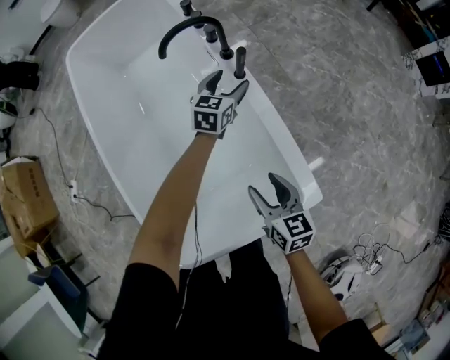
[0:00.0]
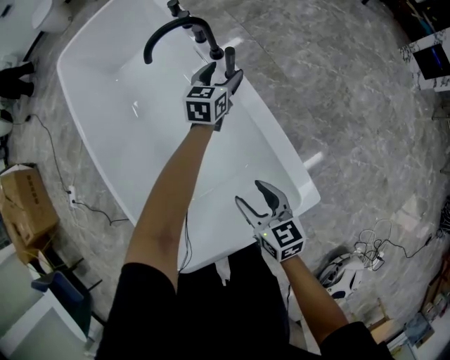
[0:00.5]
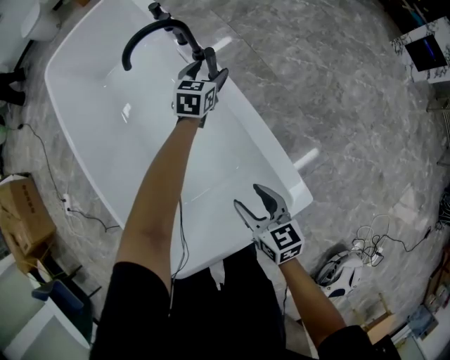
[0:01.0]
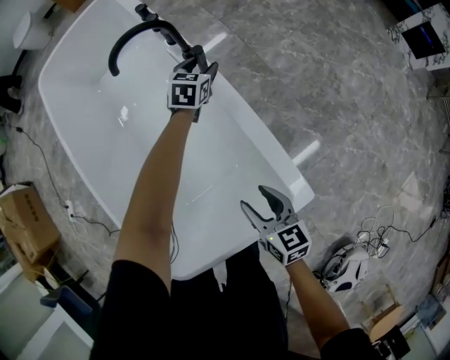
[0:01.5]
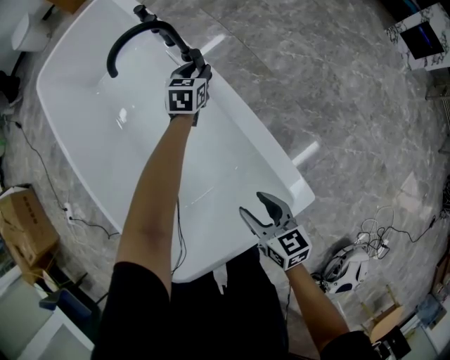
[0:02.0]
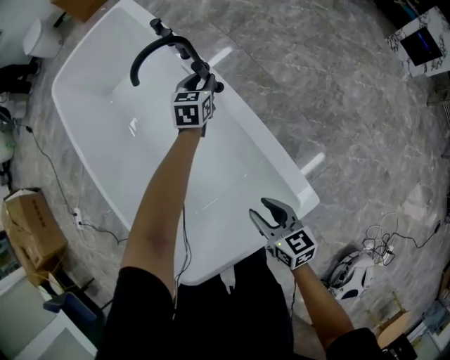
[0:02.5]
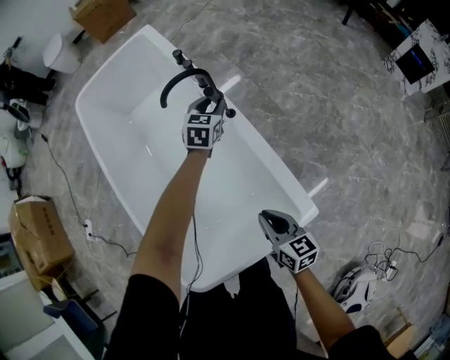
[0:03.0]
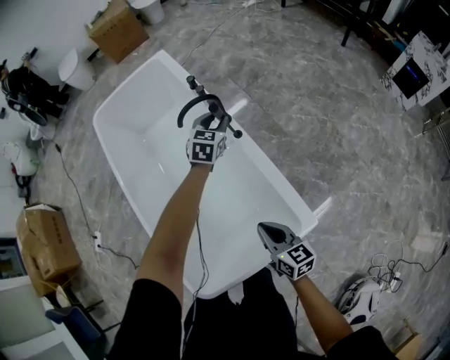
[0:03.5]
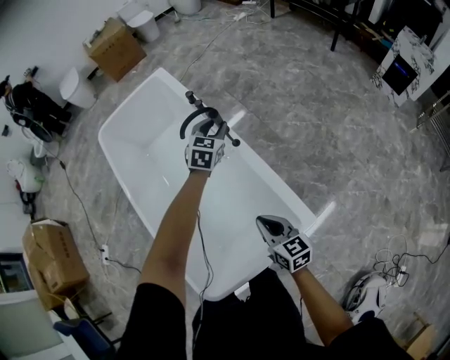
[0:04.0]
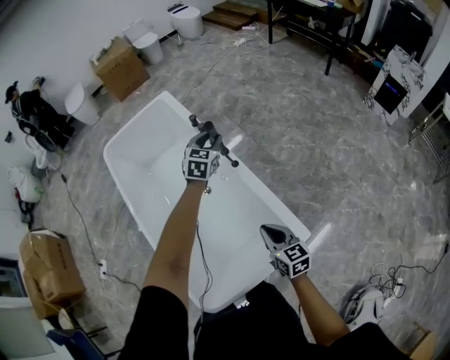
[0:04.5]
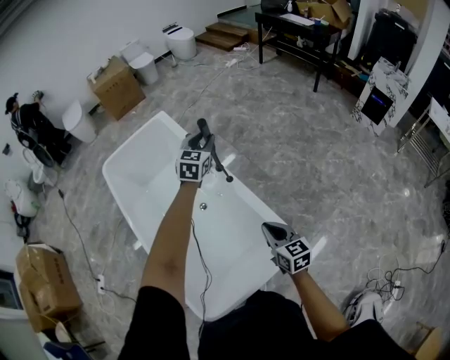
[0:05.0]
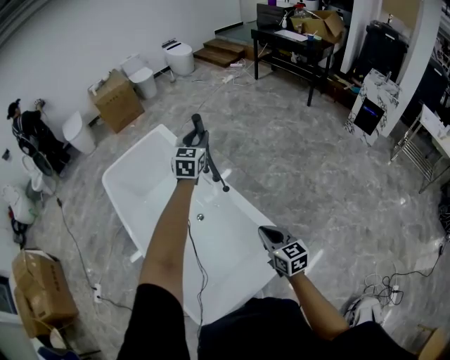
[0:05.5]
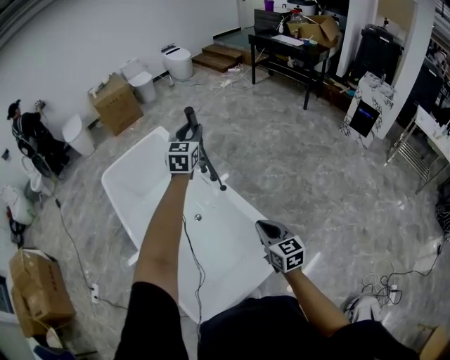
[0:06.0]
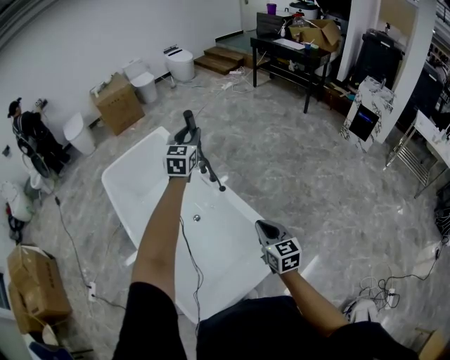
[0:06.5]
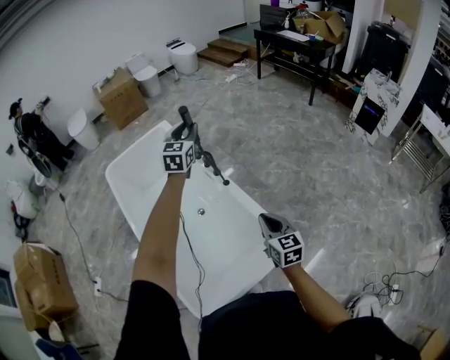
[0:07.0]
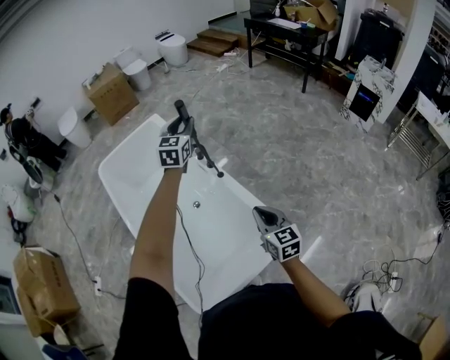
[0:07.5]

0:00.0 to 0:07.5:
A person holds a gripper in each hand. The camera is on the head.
0:00.0 to 0:02.0: The left gripper is displaced downward and forward by about 10 cm, and closes up. The right gripper ends up approximately 5 cm from where it was.
0:02.0 to 0:04.0: The right gripper shifts approximately 20 cm upward, and closes up; the left gripper travels upward by approximately 30 cm.
0:04.0 to 0:05.5: The right gripper moves upward, about 10 cm; the left gripper heads upward, covering approximately 25 cm.

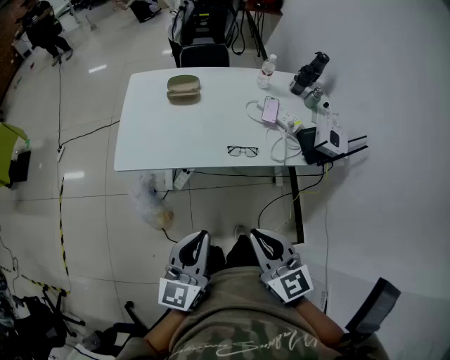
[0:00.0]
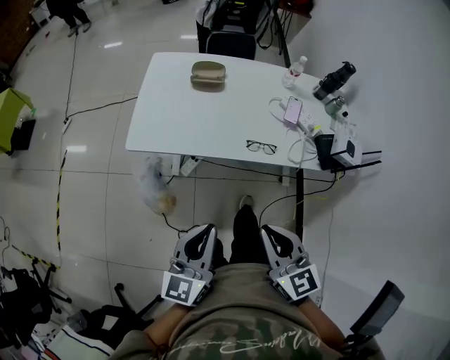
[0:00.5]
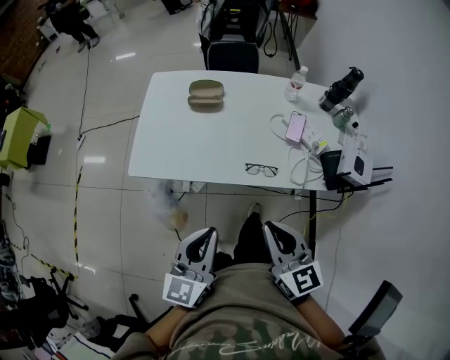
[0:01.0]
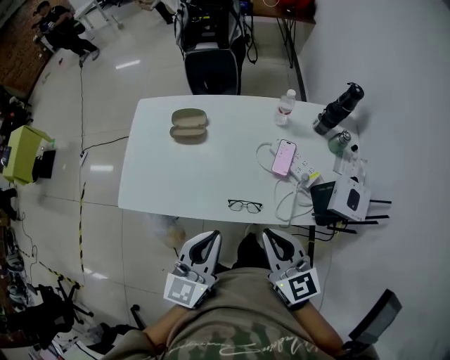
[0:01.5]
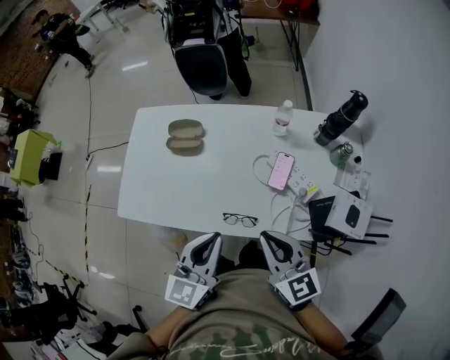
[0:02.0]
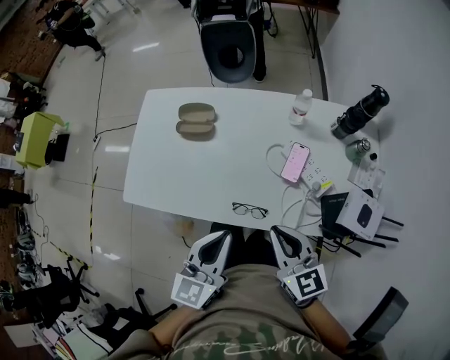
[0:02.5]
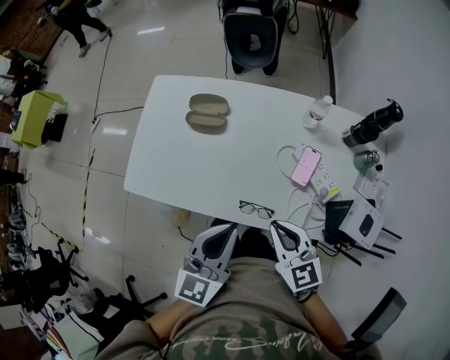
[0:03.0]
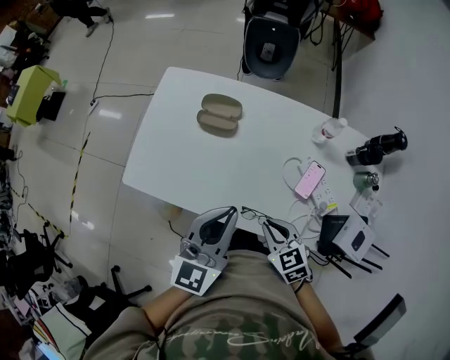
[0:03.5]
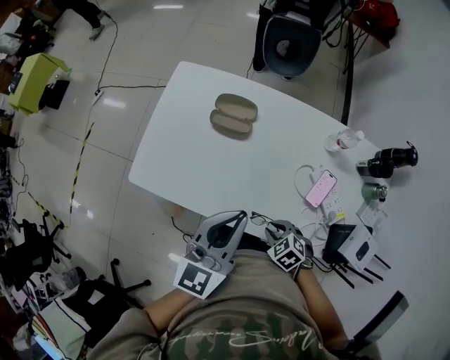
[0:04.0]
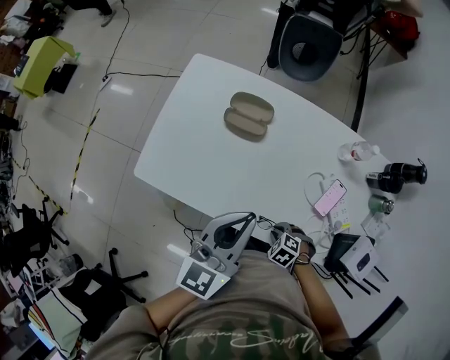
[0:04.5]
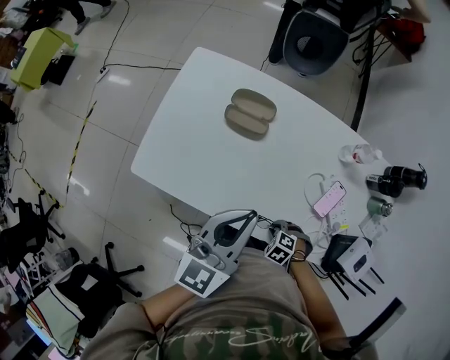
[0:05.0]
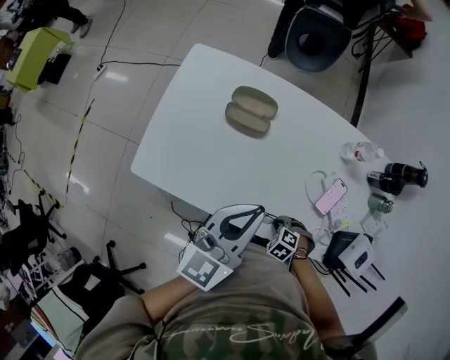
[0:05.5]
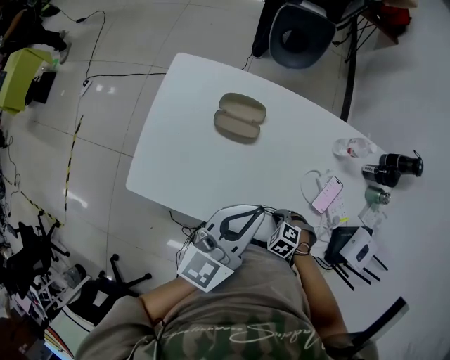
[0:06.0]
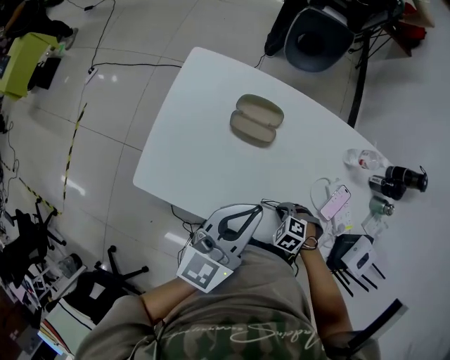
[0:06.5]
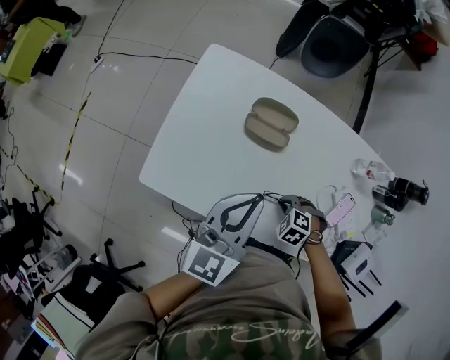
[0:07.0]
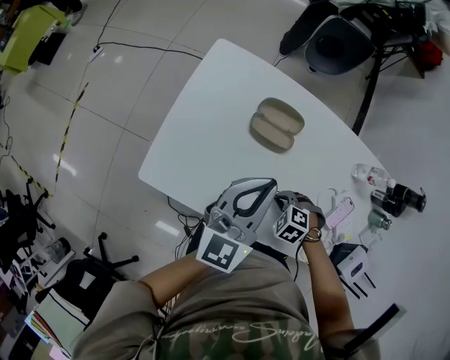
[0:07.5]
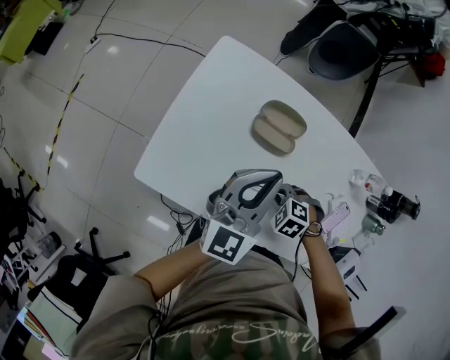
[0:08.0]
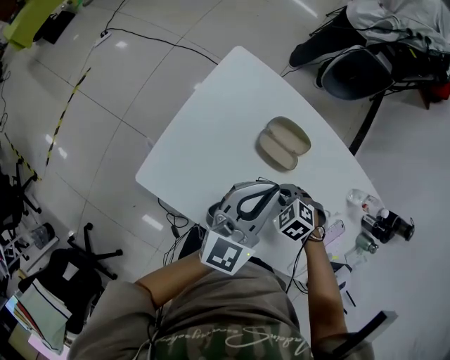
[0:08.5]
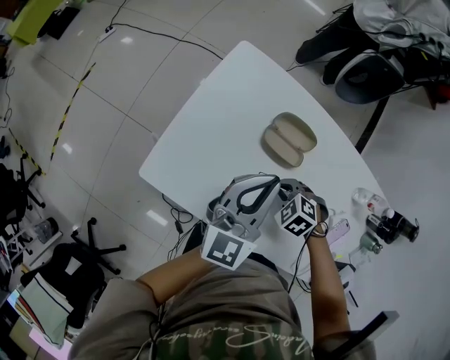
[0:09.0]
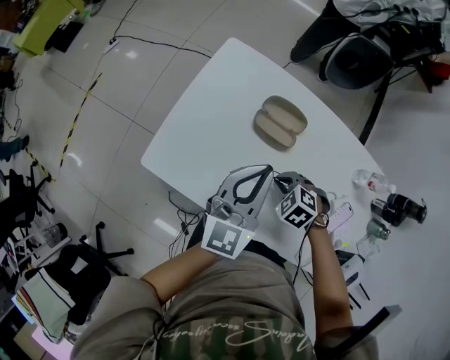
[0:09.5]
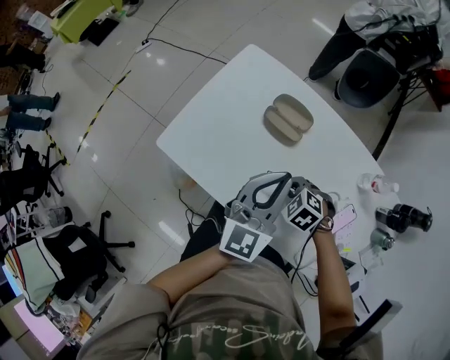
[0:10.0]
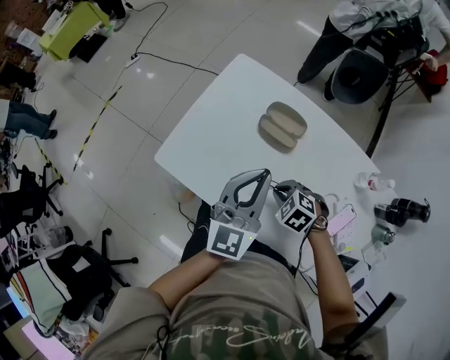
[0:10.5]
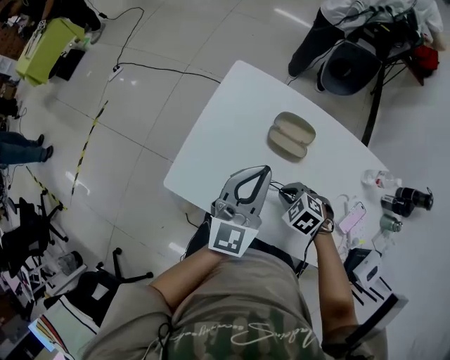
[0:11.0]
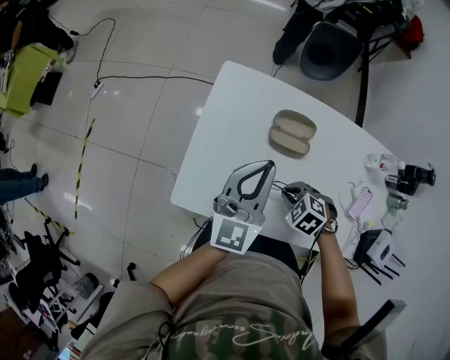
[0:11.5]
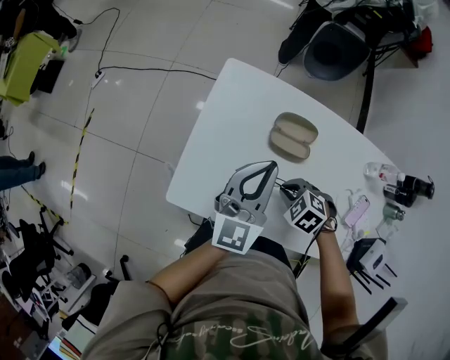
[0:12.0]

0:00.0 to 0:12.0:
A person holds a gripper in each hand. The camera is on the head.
0:00.0 to 0:02.0: Both grippers travel together forward and to the right, some 30 cm.
0:02.0 to 0:04.0: The right gripper goes about 25 cm downward, and tilts its fingers about 50 degrees downward. The left gripper moves forward and to the left, about 15 cm.
0:04.0 to 0:06.0: The right gripper travels downward by some 5 cm, and changes its angle by approximately 20 degrees, while the left gripper changes place by about 10 cm.
0:06.0 to 0:08.0: The left gripper ends up some 15 cm from where it was. The right gripper changes place by approximately 20 cm.
0:08.0 to 0:10.0: The right gripper is displaced upward by some 5 cm. The left gripper moves some 10 cm.
0:10.0 to 0:12.0: The right gripper ends up about 10 cm from where it was. The left gripper ends up about 20 cm from where it was.

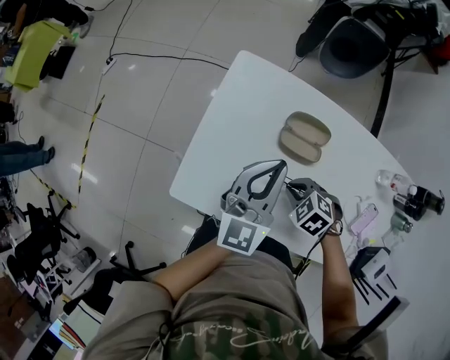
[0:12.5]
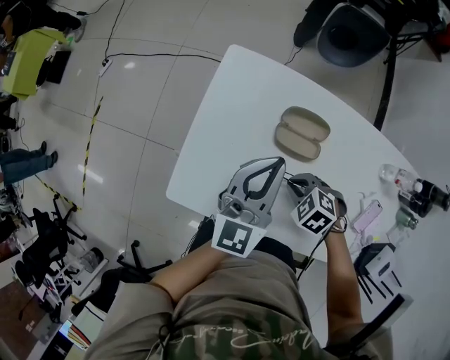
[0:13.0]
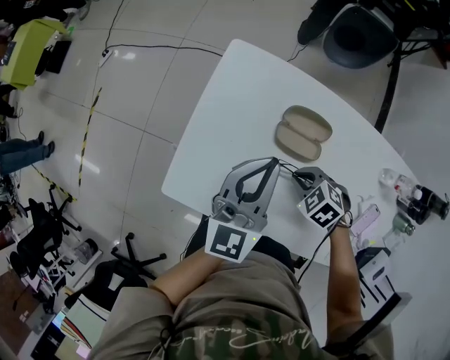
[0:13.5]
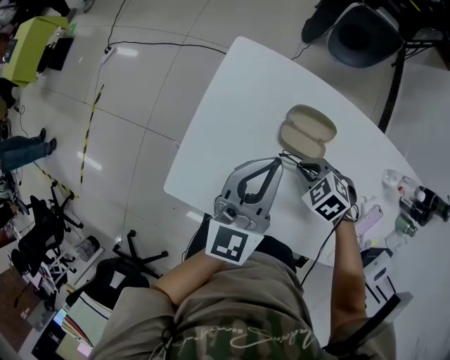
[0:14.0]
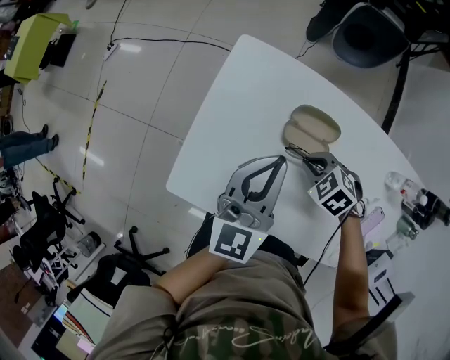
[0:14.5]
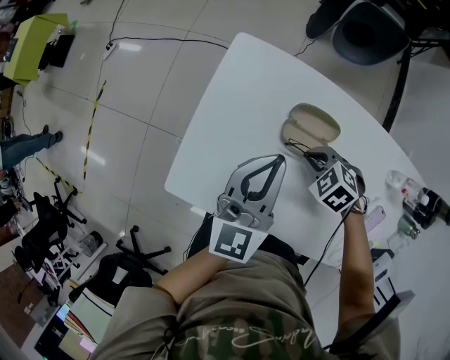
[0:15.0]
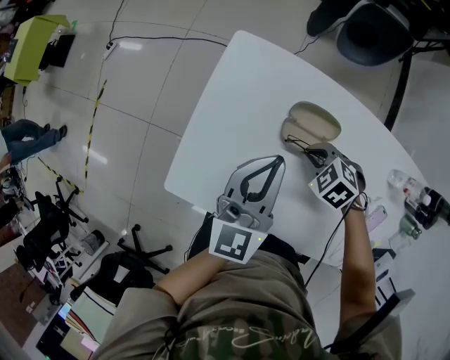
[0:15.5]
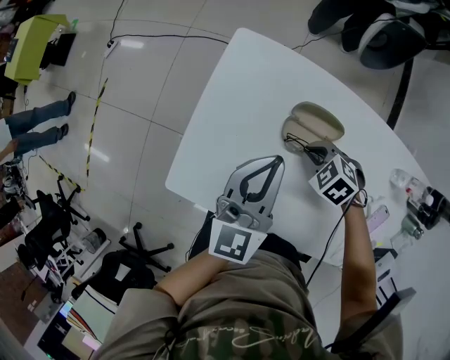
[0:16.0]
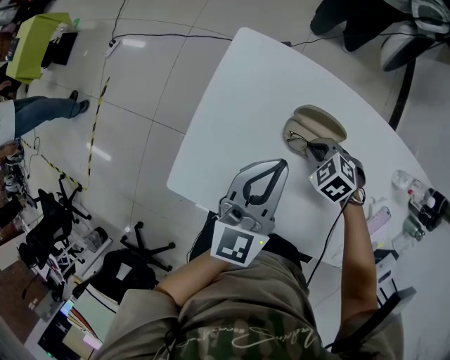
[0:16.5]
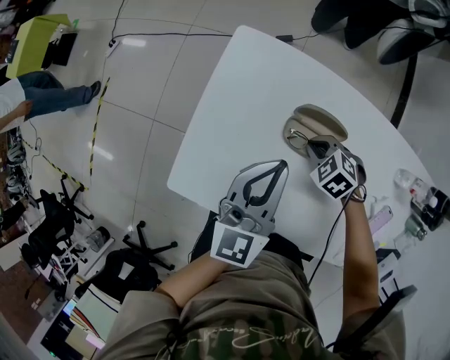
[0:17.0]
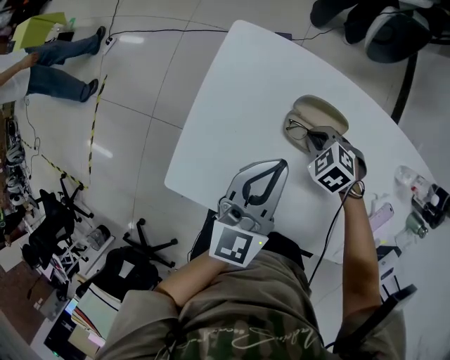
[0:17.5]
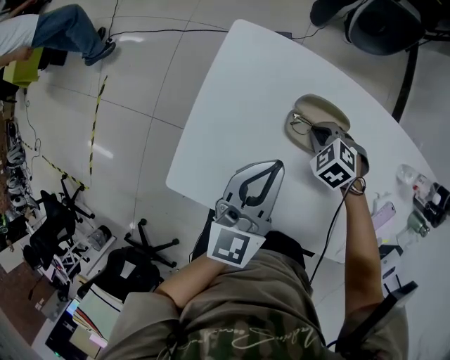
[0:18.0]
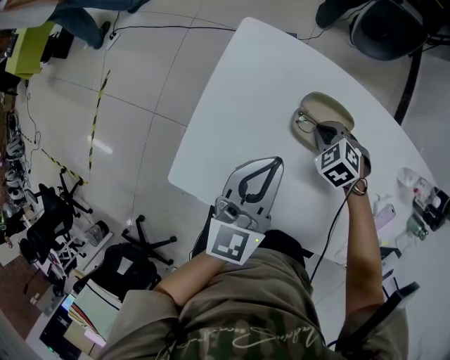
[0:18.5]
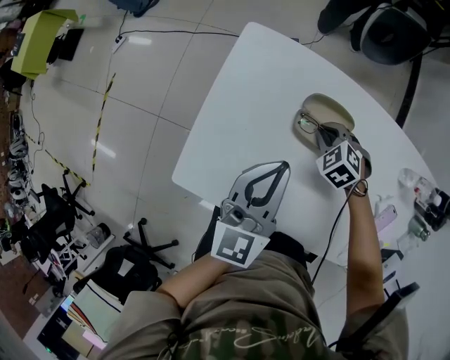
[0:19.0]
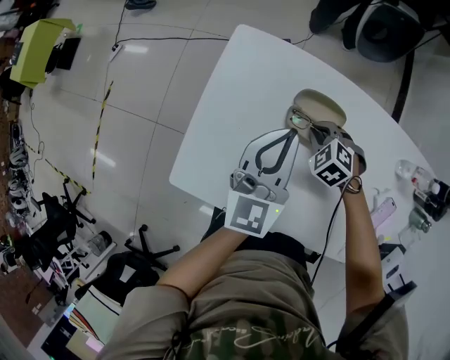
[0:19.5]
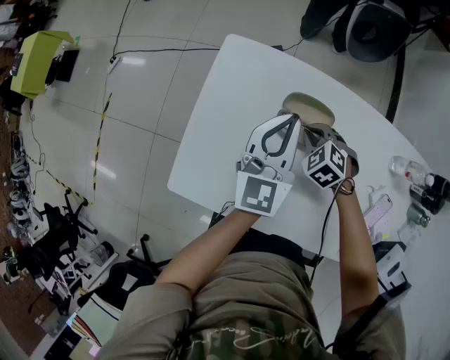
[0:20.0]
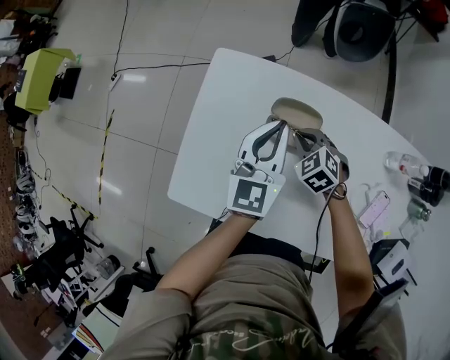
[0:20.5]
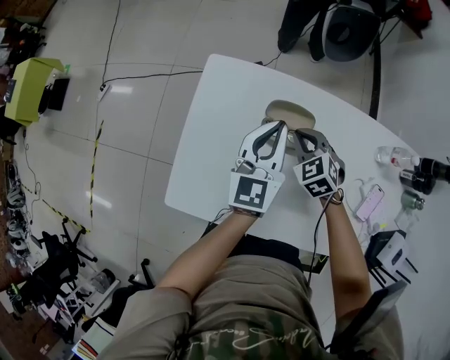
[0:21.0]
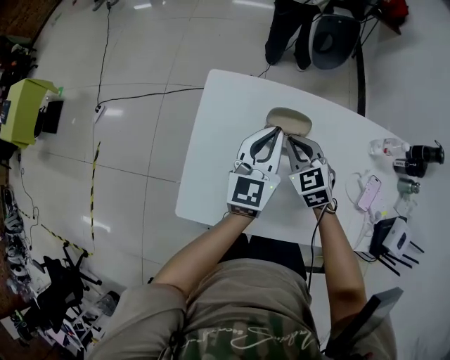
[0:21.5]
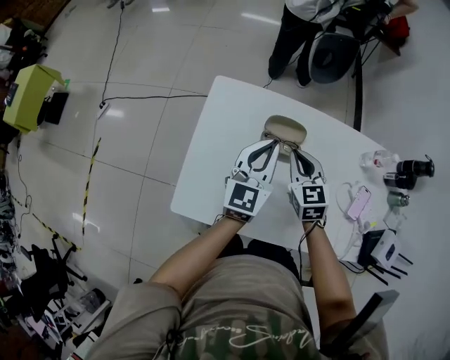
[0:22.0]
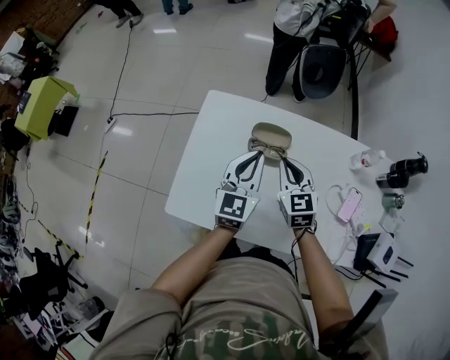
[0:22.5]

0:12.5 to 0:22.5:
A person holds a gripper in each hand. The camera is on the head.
0:12.5 to 0:14.5: The right gripper moves forward and to the right, approximately 10 cm.
0:14.5 to 0:16.5: The grippers move only a little.
0:16.5 to 0:18.5: The grippers stay close to where they were, moving slightly.
0:18.5 to 0:20.5: The right gripper is displaced upward by about 5 cm. Meanwhile the left gripper is displaced to the right and forward by approximately 10 cm.
0:20.5 to 0:22.5: The left gripper goes some 10 cm backward, while the right gripper heads upward and backward, covering approximately 20 cm, and angles its fingers upward, by about 30 degrees.
